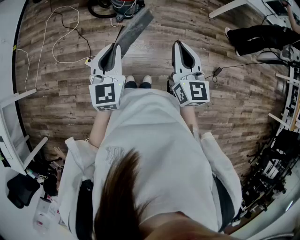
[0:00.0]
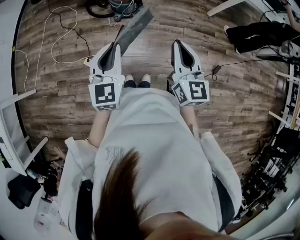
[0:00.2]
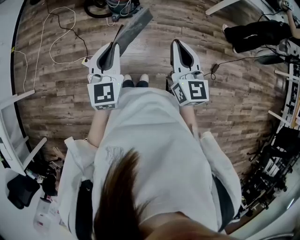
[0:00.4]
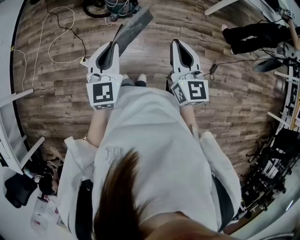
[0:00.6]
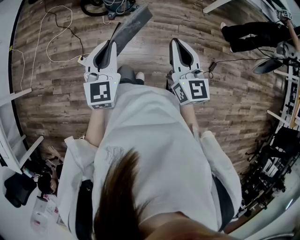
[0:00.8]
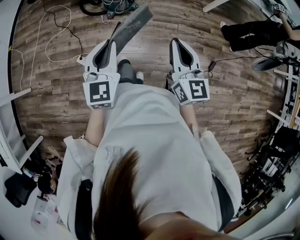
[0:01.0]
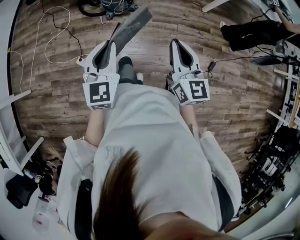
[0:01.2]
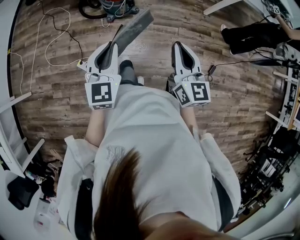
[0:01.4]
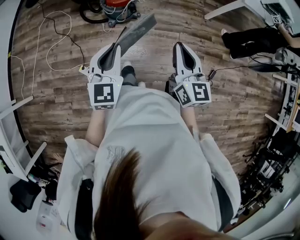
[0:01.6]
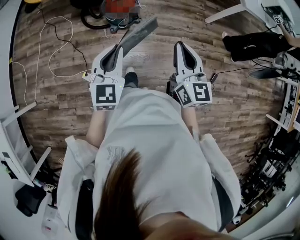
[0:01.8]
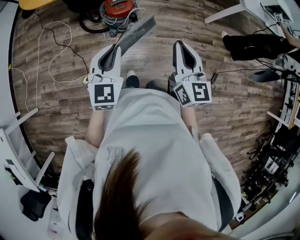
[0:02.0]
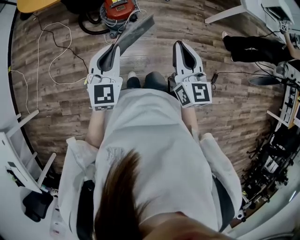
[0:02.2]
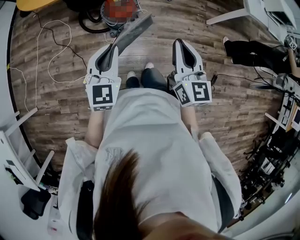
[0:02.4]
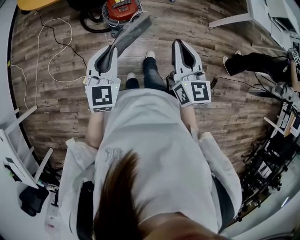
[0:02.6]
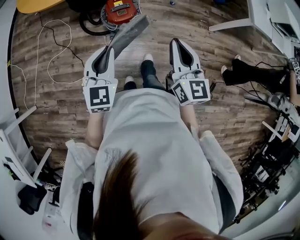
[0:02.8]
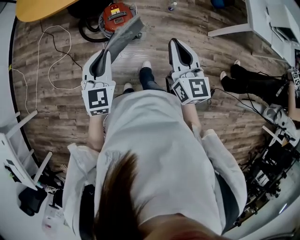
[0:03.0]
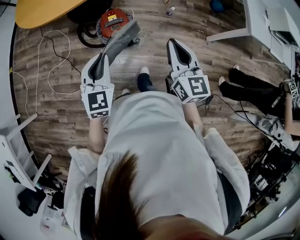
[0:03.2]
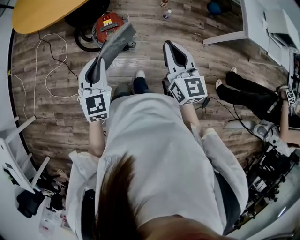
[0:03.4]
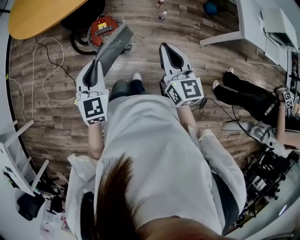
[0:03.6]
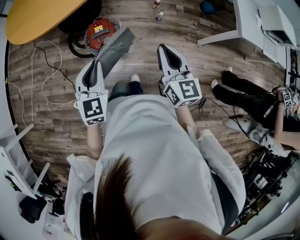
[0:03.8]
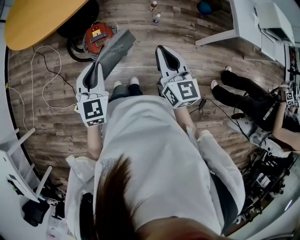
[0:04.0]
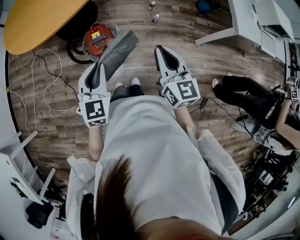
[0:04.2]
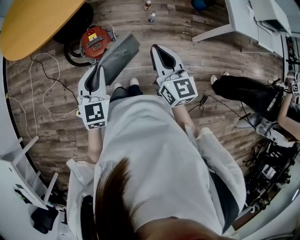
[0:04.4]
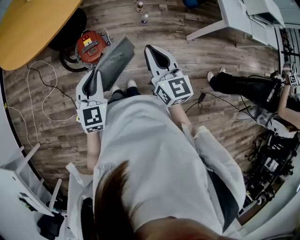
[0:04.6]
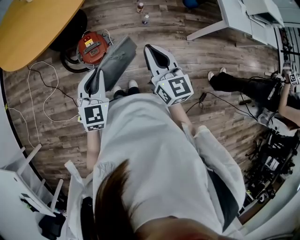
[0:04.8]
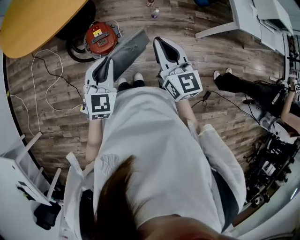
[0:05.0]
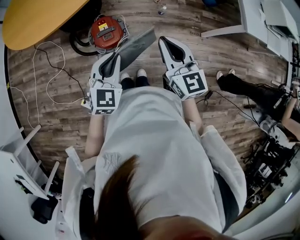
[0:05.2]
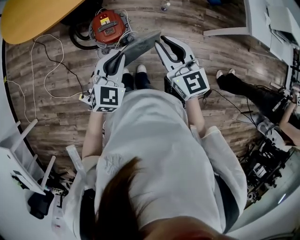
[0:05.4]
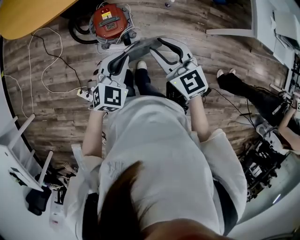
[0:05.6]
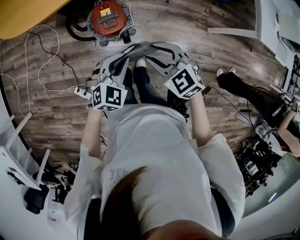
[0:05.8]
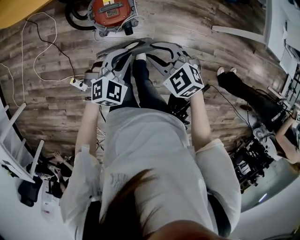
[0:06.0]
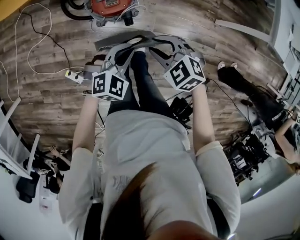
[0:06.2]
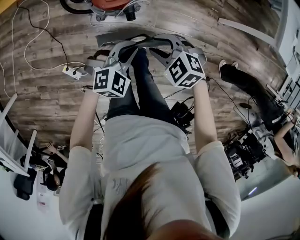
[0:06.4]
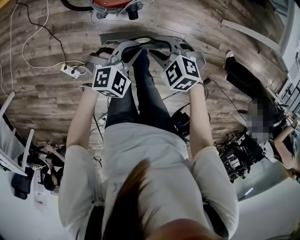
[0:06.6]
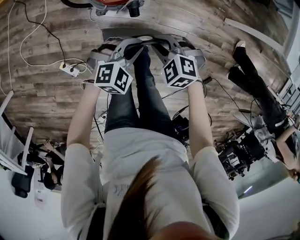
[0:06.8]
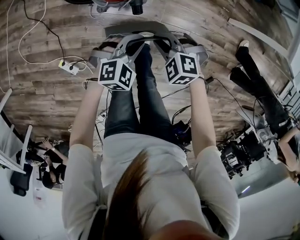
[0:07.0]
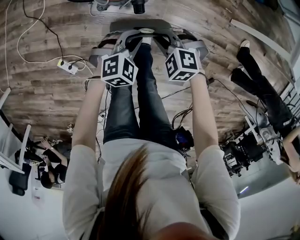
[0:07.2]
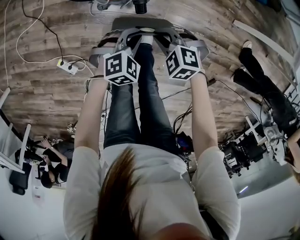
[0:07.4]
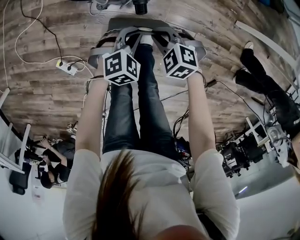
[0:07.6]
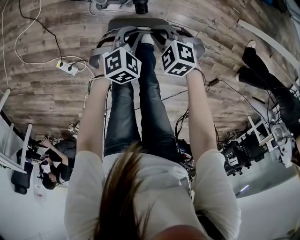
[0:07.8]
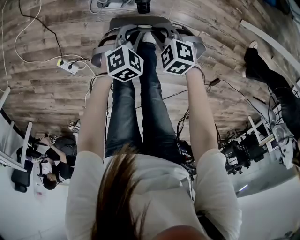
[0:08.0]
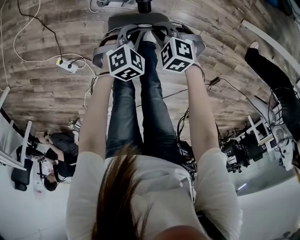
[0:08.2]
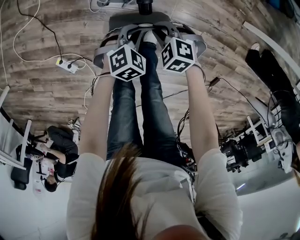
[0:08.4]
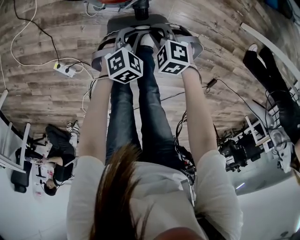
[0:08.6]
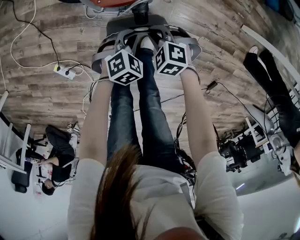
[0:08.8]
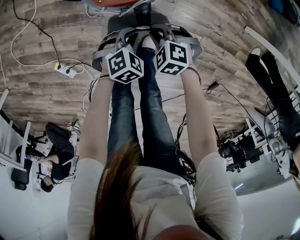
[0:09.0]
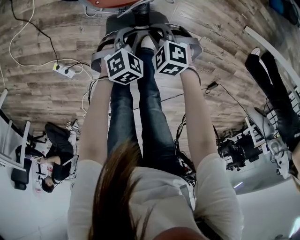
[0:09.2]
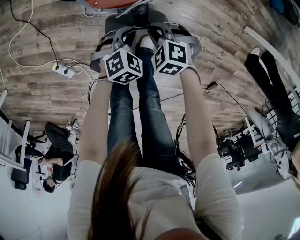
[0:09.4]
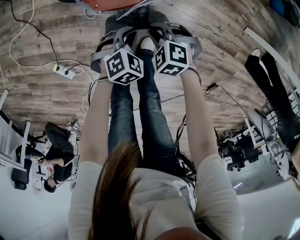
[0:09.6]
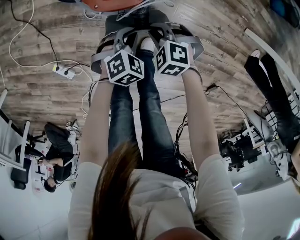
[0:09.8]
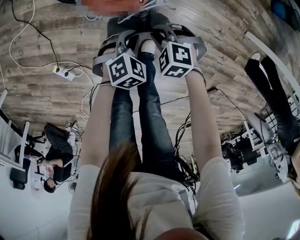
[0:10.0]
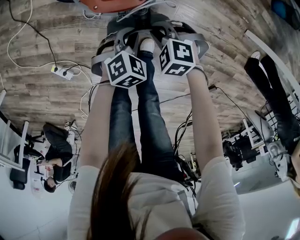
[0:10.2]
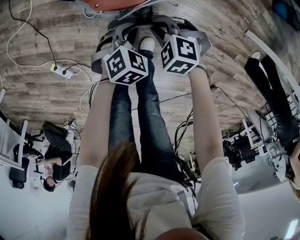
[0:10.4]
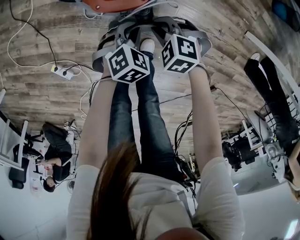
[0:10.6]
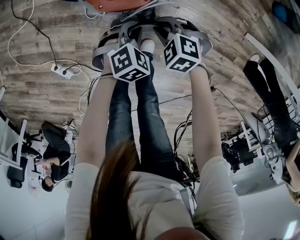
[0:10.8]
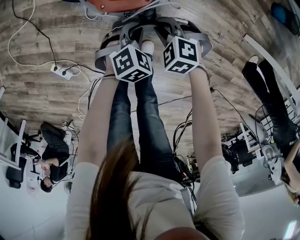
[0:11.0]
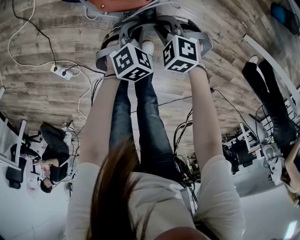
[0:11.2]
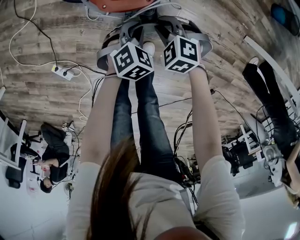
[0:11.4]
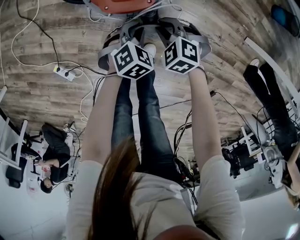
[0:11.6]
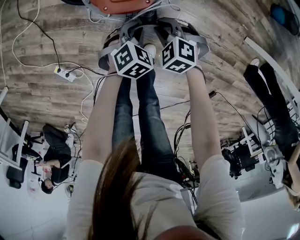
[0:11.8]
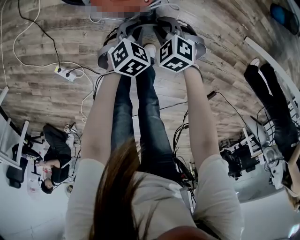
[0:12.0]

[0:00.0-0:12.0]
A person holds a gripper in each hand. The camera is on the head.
0:00.0 to 0:01.6: The two grippers go about 10 cm forward and to the right.
0:01.6 to 0:03.0: The two grippers go approximately 25 cm forward.
0:03.0 to 0:04.4: The right gripper shifts about 10 cm forward and to the right; the left gripper is displaced to the right and forward by roughly 15 cm.
0:04.4 to 0:06.0: The left gripper travels downward by some 15 cm, and swivels approximately 30 degrees, while the right gripper shifts roughly 25 cm downward and to the left, tilts its fingers about 40 degrees downward, and opens.
0:06.0 to 0:07.6: Both grippers move downward, about 30 cm. The right gripper changes its angle by approximately 20 degrees, and closes its fingers.
0:07.6 to 0:09.0: Both grippers travel together downward, about 10 cm.
0:09.0 to 0:10.4: There are only small adjustments of the grippers.
0:10.4 to 0:12.0: The grippers move only a little.

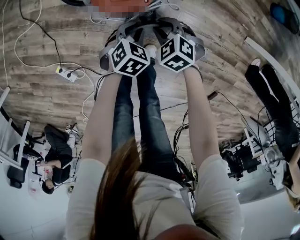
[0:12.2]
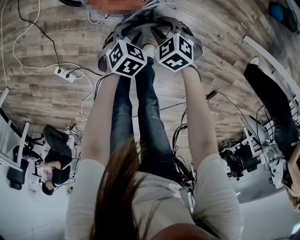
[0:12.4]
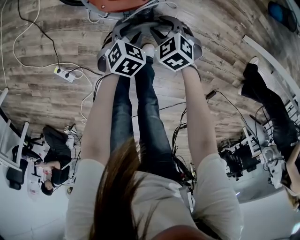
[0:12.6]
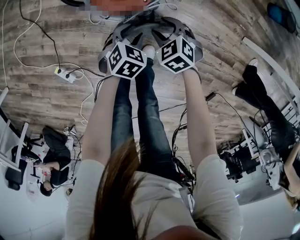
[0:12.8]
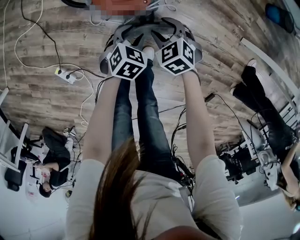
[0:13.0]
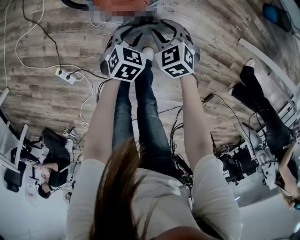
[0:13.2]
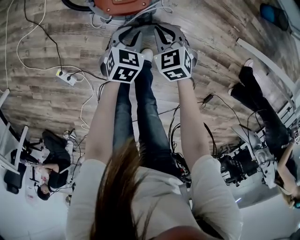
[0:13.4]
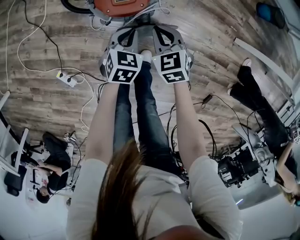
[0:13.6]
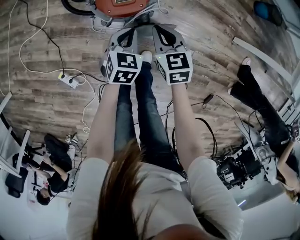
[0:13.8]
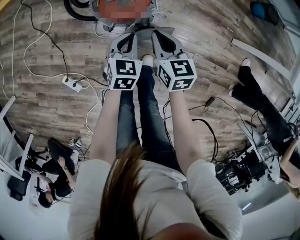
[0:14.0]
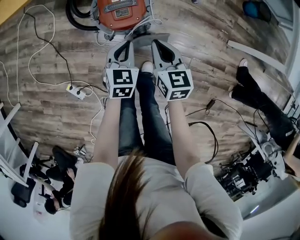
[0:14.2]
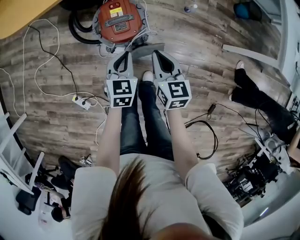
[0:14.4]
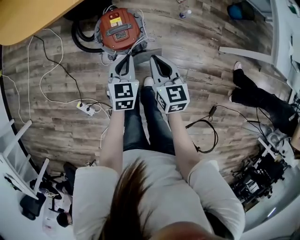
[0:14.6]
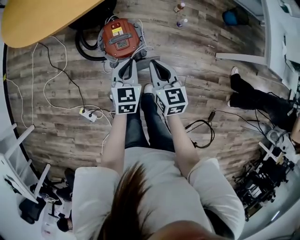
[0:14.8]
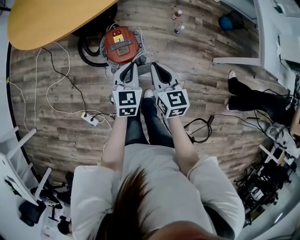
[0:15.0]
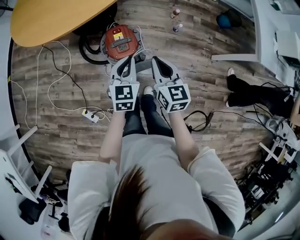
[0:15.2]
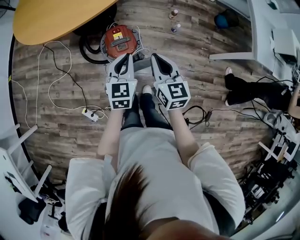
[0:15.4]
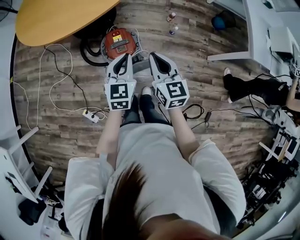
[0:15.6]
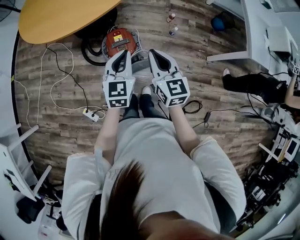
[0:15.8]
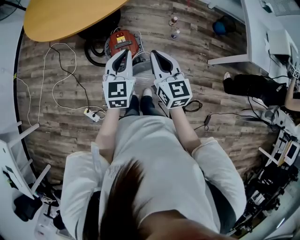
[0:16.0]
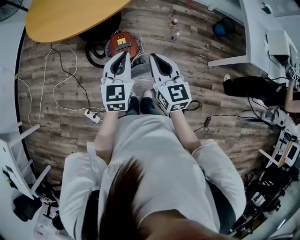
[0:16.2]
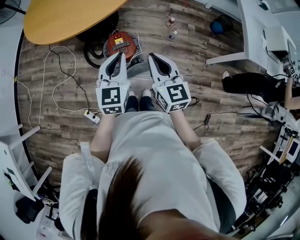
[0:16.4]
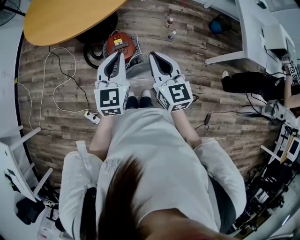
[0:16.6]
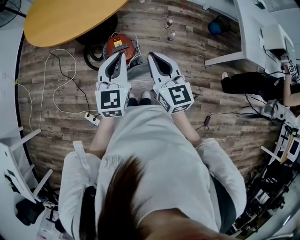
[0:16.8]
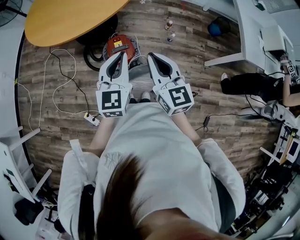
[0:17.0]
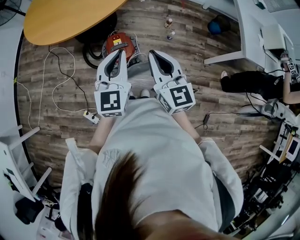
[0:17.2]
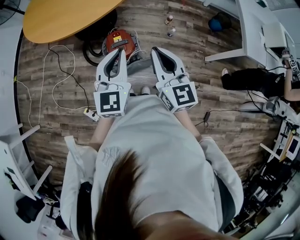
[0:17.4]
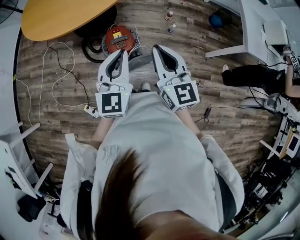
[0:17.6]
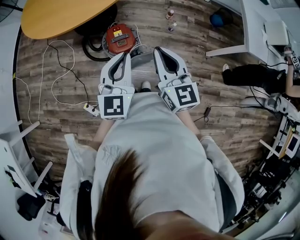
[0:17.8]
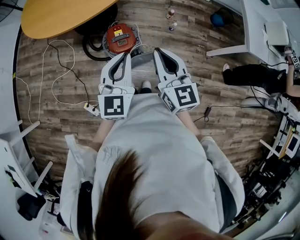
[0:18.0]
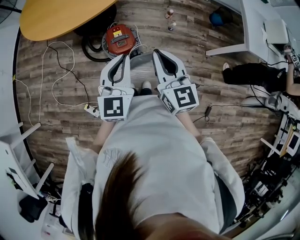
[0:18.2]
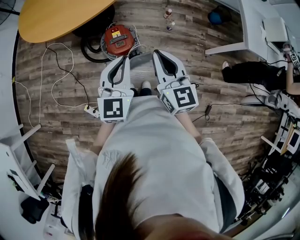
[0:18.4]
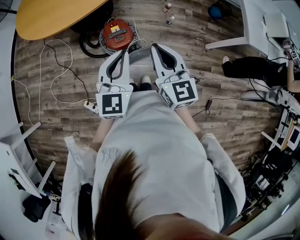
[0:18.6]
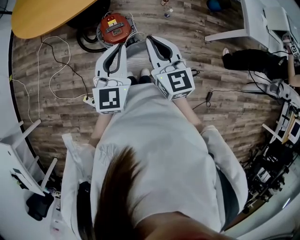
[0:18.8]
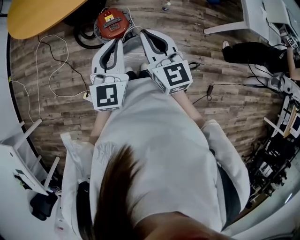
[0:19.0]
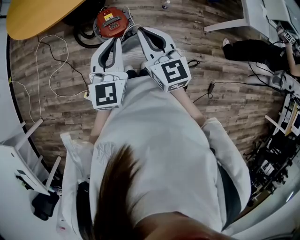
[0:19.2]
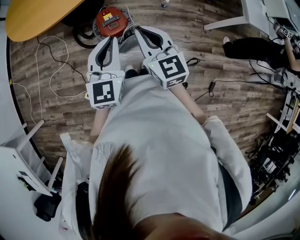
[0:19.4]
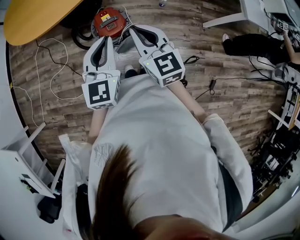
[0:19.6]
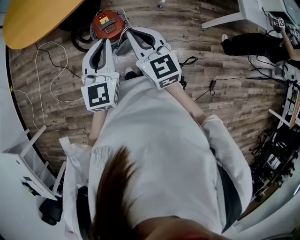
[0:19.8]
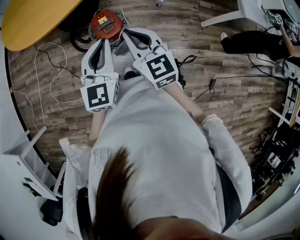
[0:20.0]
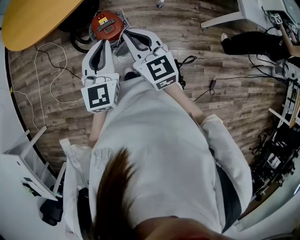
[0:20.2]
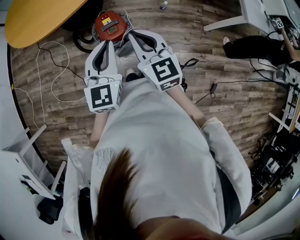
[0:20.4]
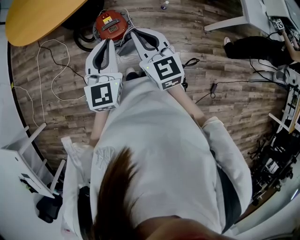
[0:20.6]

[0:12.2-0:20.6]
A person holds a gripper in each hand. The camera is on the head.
0:12.2 to 0:13.6: The grippers both shift upward by roughly 10 cm. The right gripper rotates some 30 degrees, and closes. Meanwhile the left gripper opens, then closes again.
0:13.6 to 0:15.0: The two grippers go roughly 30 cm upward. The left gripper swivels roughly 20 degrees. The right gripper changes its angle by some 40 degrees.
0:15.0 to 0:16.4: Both grippers travel together upward, about 20 cm.
0:16.4 to 0:17.8: The right gripper shifts by roughly 5 cm. Meanwhile the left gripper ends up approximately 5 cm from where it was.
0:17.8 to 0:19.2: The grippers move only a little.
0:19.2 to 0:20.6: The grippers move only a little.

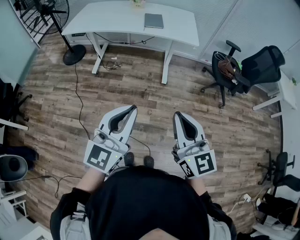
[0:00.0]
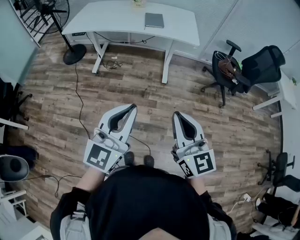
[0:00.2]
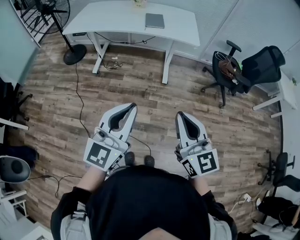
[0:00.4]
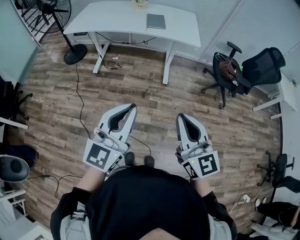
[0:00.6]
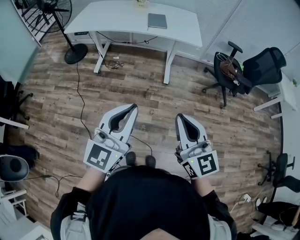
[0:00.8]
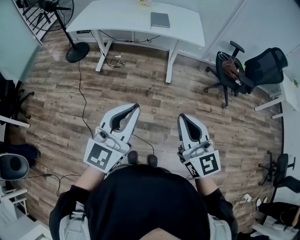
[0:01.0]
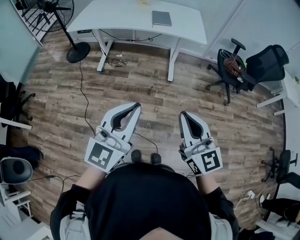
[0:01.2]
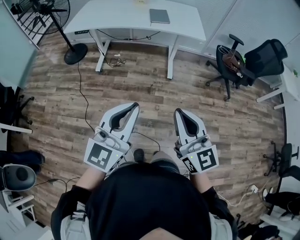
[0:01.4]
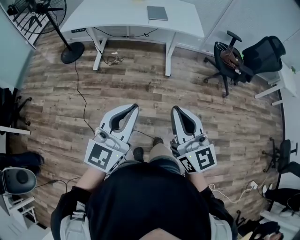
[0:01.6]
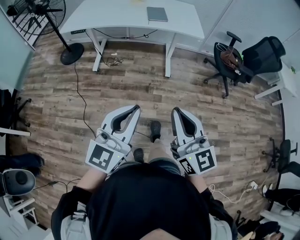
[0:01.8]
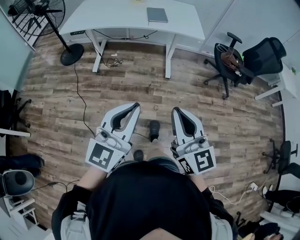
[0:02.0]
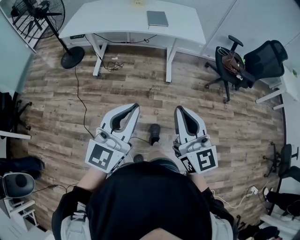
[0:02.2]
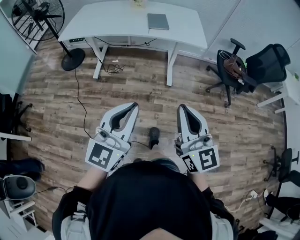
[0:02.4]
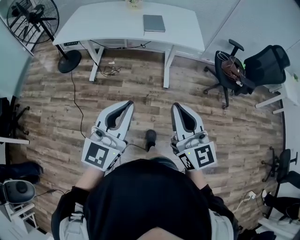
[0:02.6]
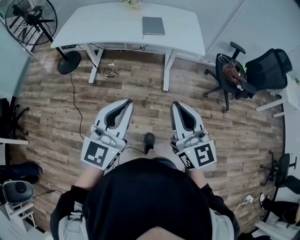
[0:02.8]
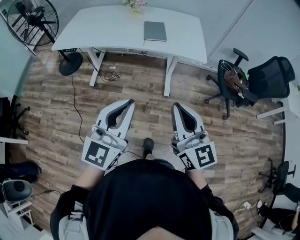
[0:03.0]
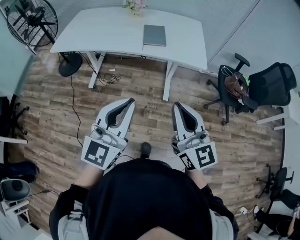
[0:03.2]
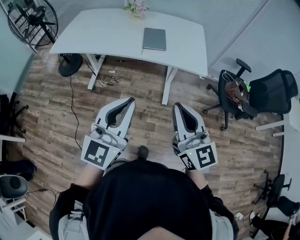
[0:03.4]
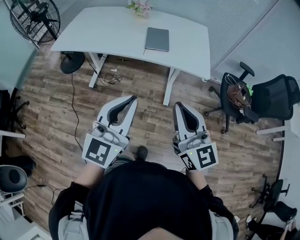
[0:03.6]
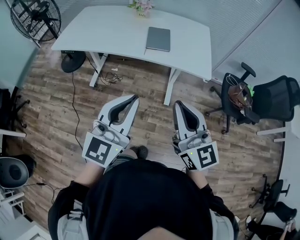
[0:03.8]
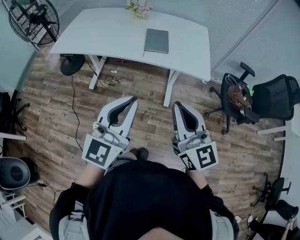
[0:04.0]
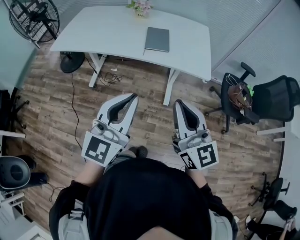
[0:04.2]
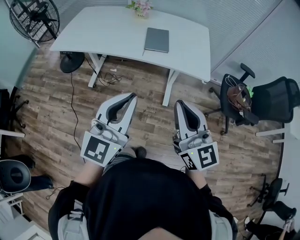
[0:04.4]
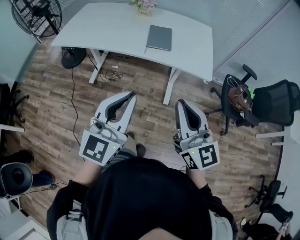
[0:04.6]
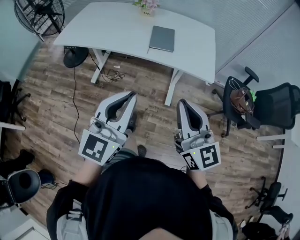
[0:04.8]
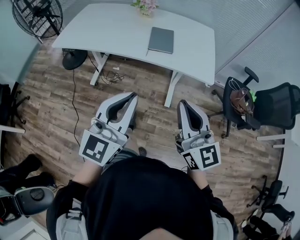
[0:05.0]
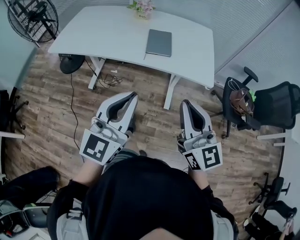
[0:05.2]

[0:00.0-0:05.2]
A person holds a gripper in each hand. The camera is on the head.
0:00.0 to 0:01.8: The grippers both shift to the left by some 10 cm.
0:01.8 to 0:03.4: Both grippers travel together forward, roughly 30 cm.
0:03.4 to 0:05.2: Both grippers move forward, approximately 10 cm.
